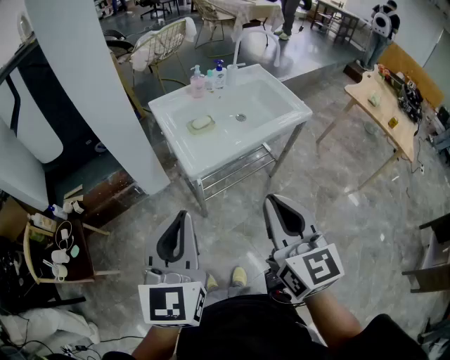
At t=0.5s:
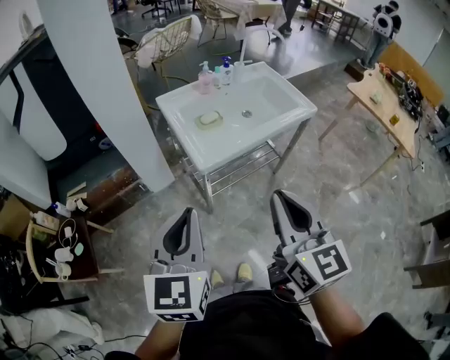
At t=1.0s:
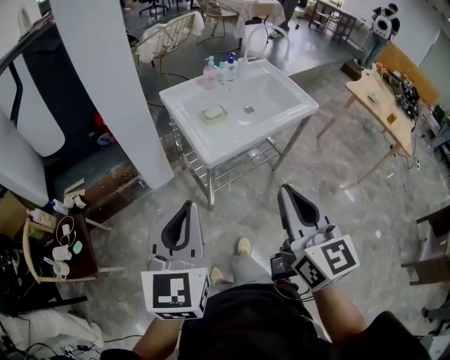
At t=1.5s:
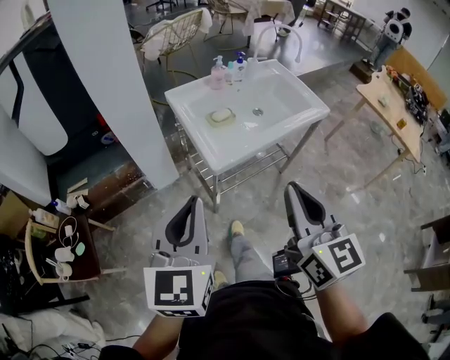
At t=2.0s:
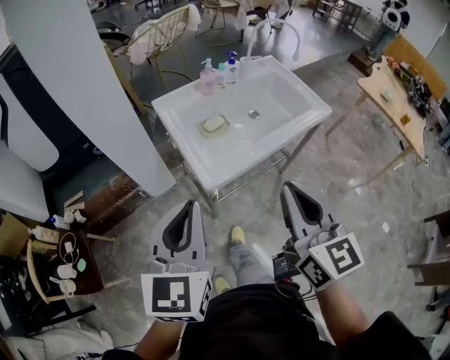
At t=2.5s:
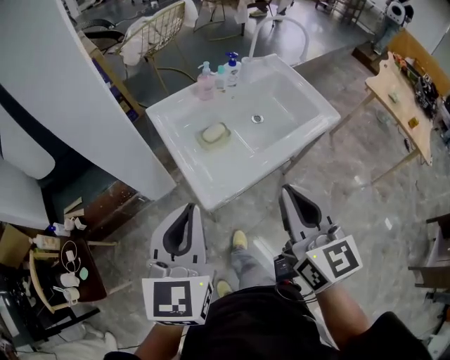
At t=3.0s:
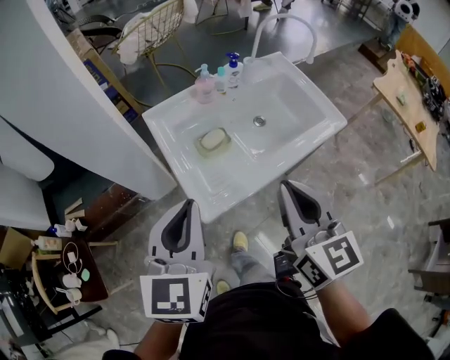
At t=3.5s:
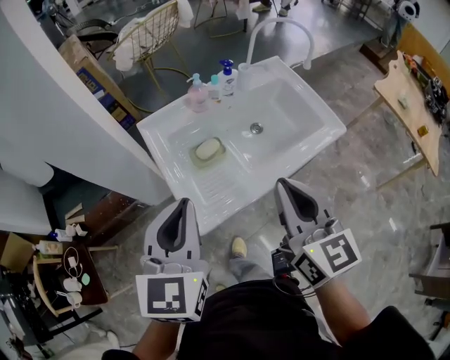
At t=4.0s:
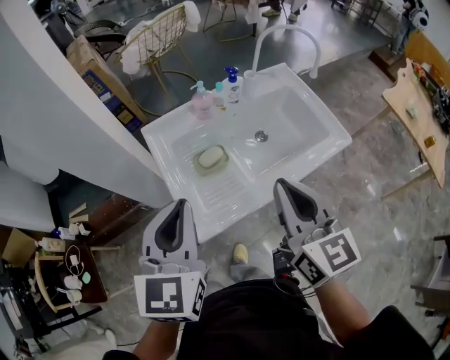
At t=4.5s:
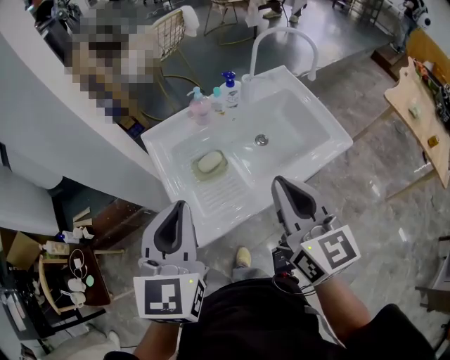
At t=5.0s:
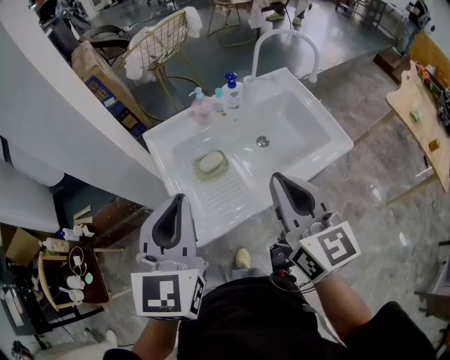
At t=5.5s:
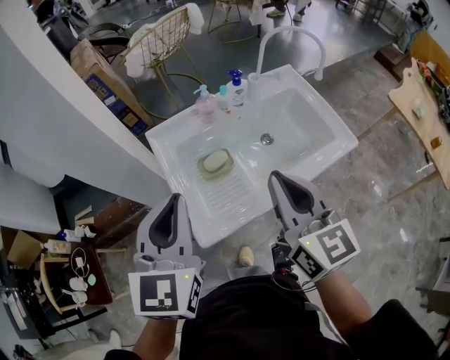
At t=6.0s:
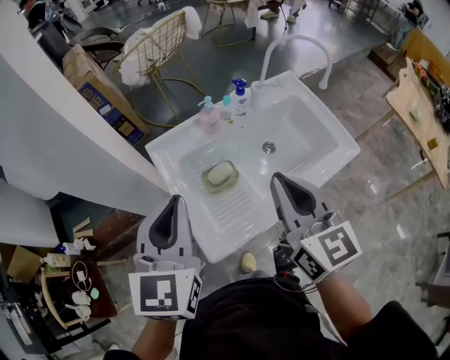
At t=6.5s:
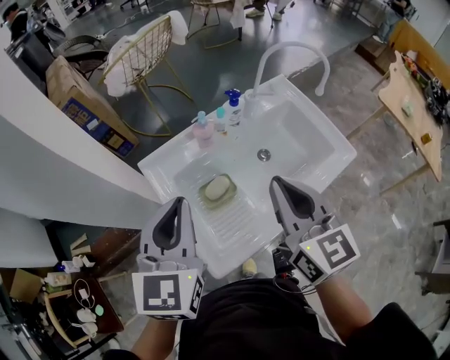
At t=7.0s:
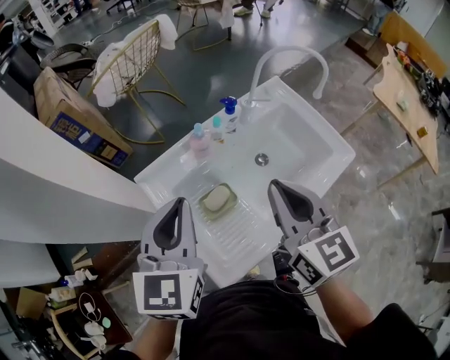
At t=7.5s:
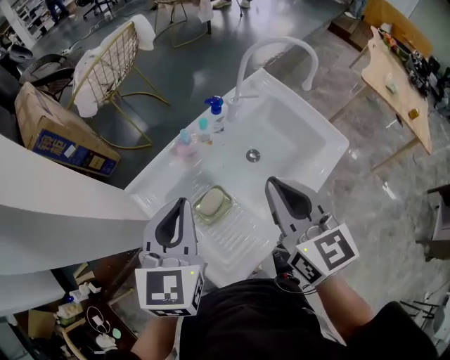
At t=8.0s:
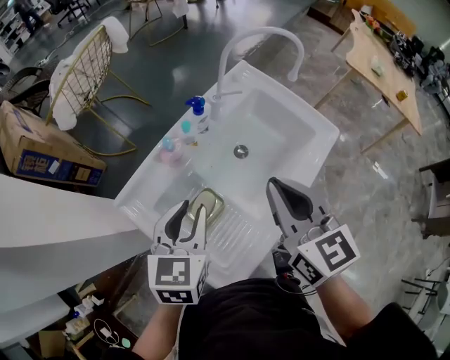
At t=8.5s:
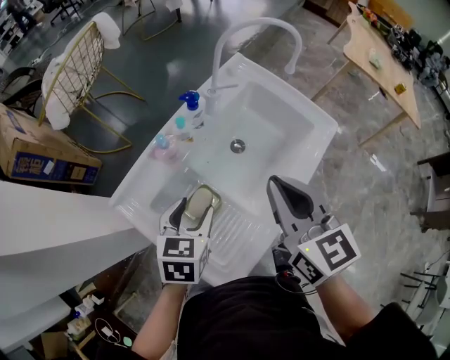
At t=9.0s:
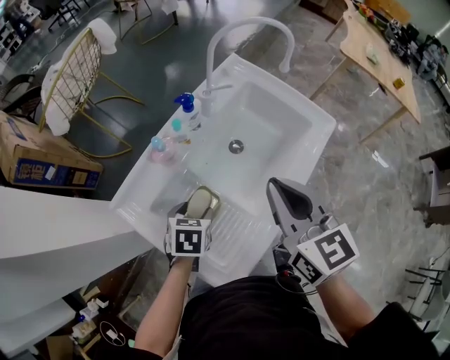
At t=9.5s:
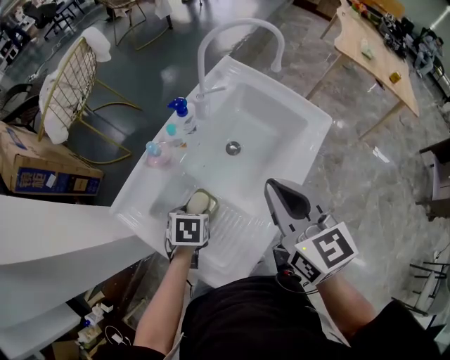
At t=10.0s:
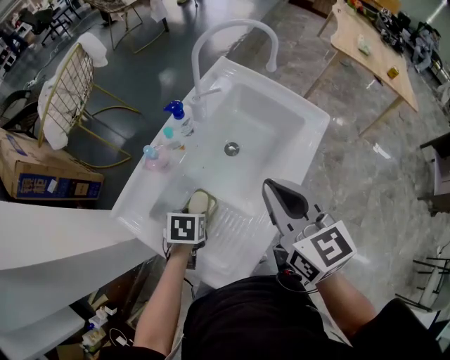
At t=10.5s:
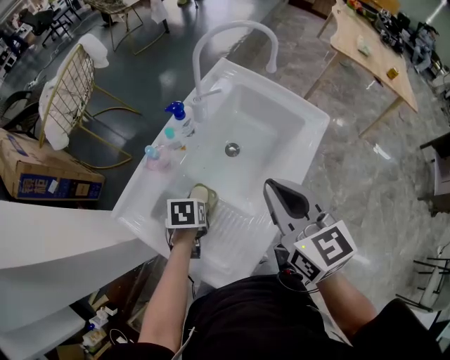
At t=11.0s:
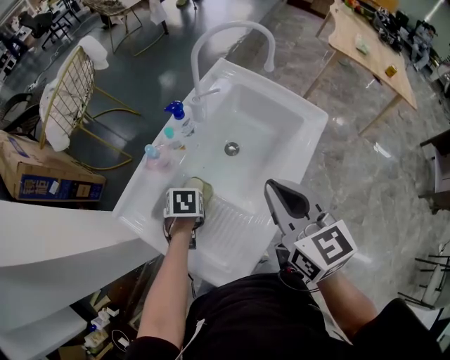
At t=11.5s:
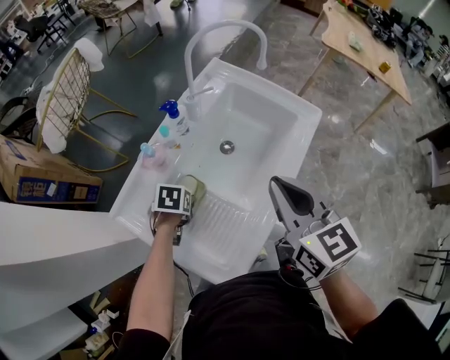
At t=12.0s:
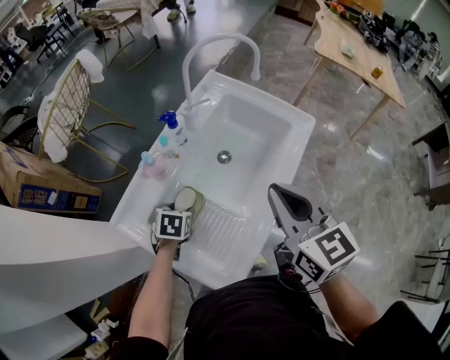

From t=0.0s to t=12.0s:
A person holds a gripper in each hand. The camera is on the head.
From t=0.0s to t=2.0s: Both grippers travel together forward, roughly 10 cm.
From t=2.0s to t=4.0s: Both grippers travel together forward, approximately 20 cm.
From t=4.0s to t=6.0s: The grippers both shift forward by approximately 5 cm.
From t=6.0s to t=8.0s: The left gripper moves forward, downward and to the right, approximately 20 cm, swivels about 30 degrees, and opens. The right gripper is displaced forward by approximately 10 cm.
From t=8.0s to t=10.0s: The left gripper goes approximately 20 cm downward, tilts its fingers approximately 40 degrees downward, and opens its fingers.
From t=10.0s to t=12.0s: The grippers make only small movements.

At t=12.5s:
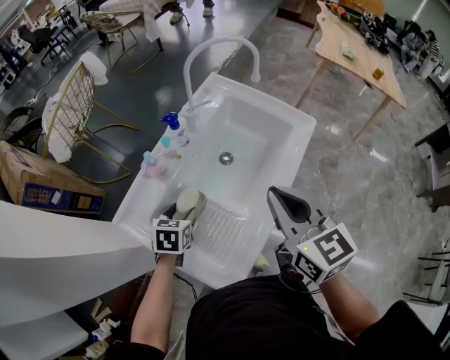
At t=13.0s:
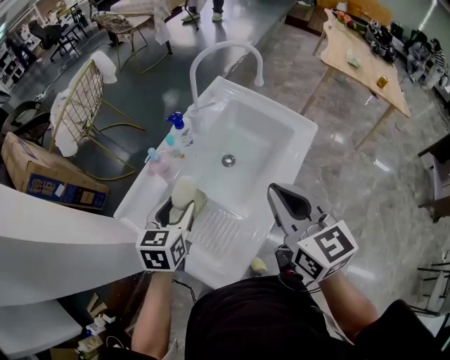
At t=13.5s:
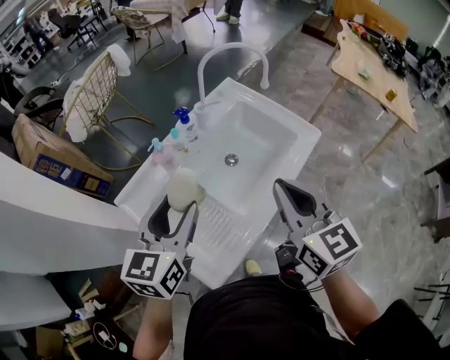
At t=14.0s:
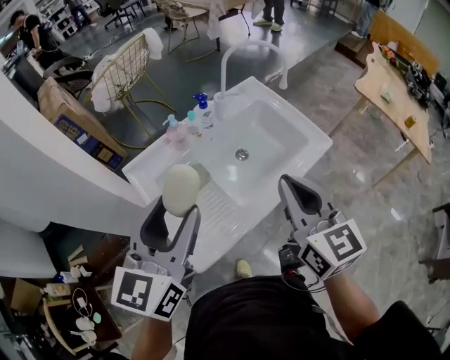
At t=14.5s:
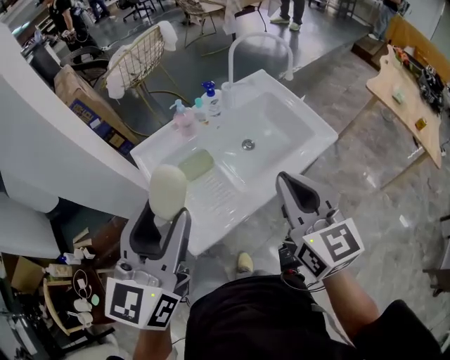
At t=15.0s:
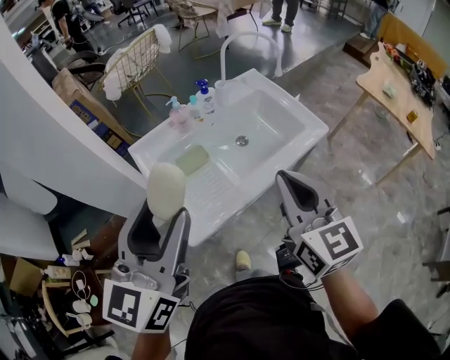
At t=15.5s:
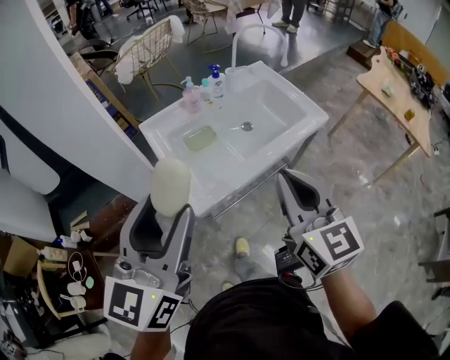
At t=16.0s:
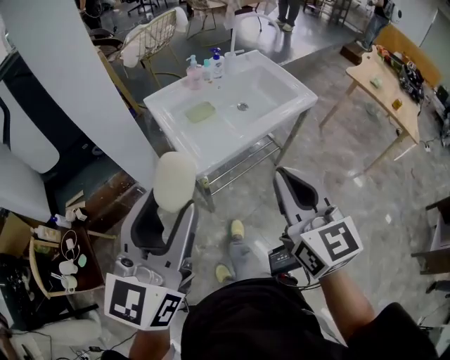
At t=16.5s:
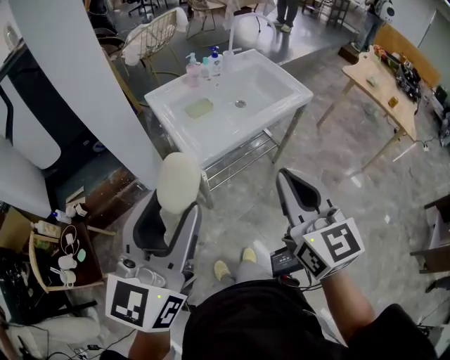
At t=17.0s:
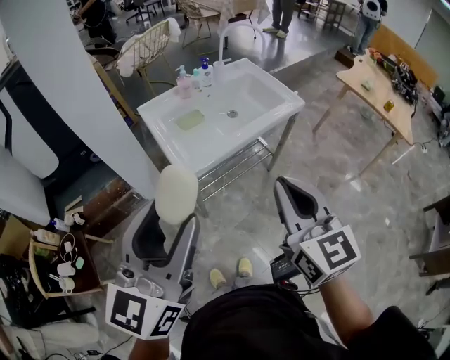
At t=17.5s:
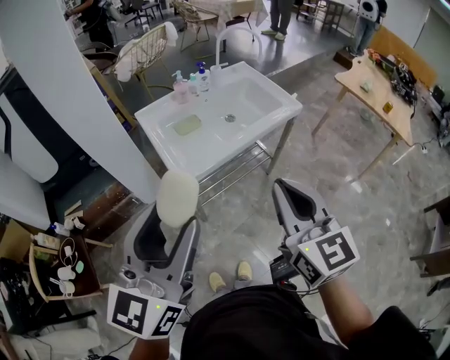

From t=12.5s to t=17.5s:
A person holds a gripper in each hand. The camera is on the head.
From t=12.5s to t=15.0s: The right gripper shifts approximately 10 cm backward and to the right, and turns by approximately 20 degrees. The left gripper travels upward and backward by some 40 cm, and points its fingers roughly 50 degrees further upward.
From t=15.0s to t=17.5s: The grippers both shift backward by some 25 cm.

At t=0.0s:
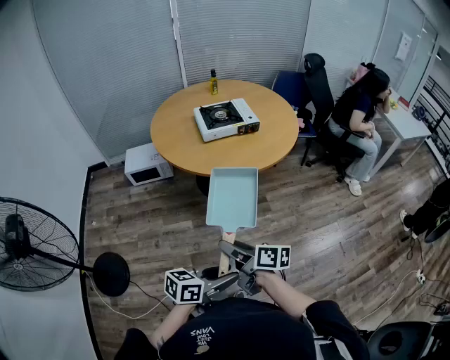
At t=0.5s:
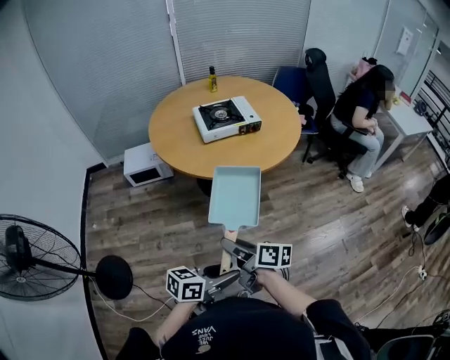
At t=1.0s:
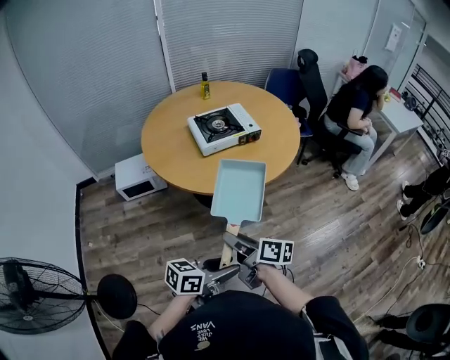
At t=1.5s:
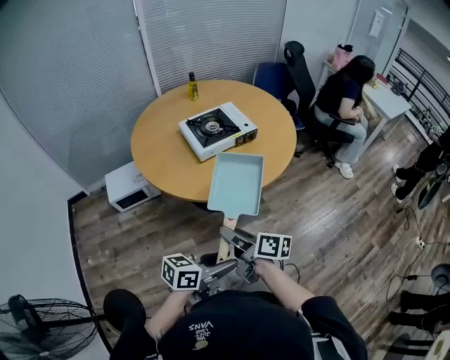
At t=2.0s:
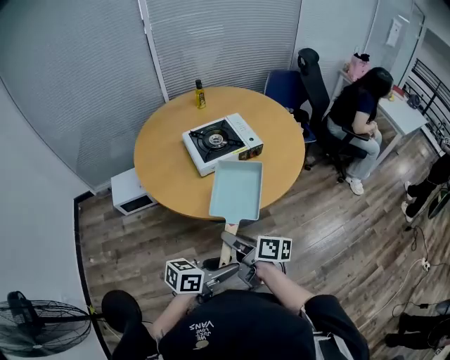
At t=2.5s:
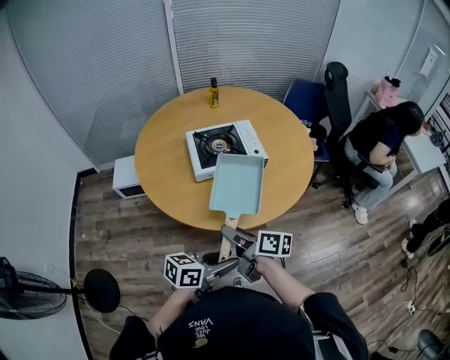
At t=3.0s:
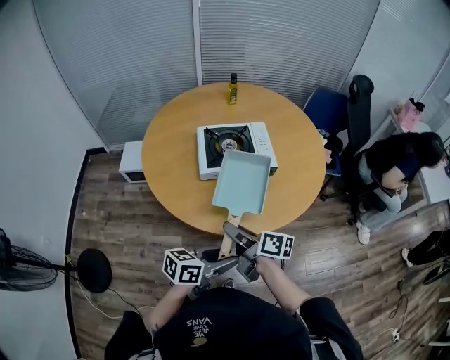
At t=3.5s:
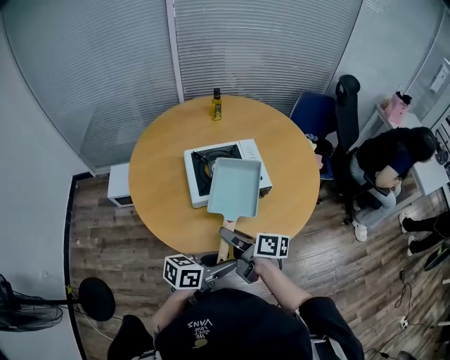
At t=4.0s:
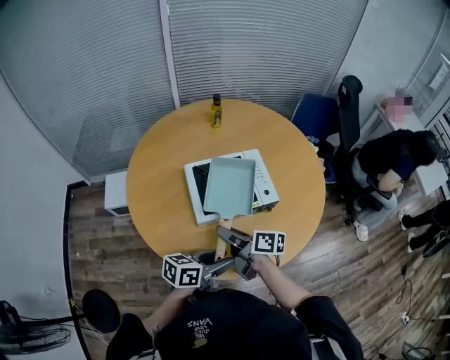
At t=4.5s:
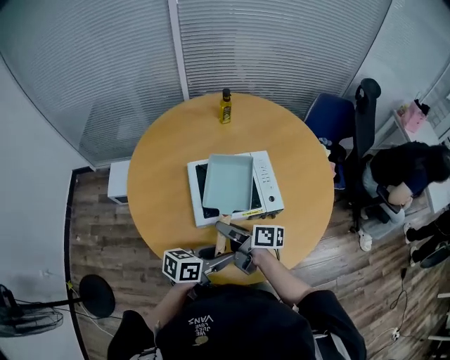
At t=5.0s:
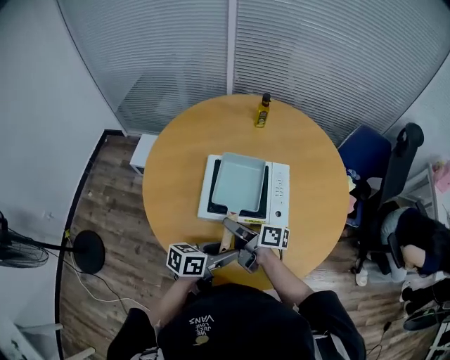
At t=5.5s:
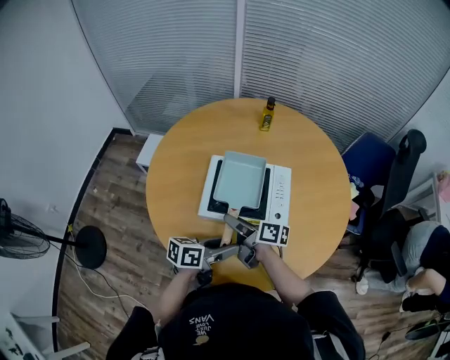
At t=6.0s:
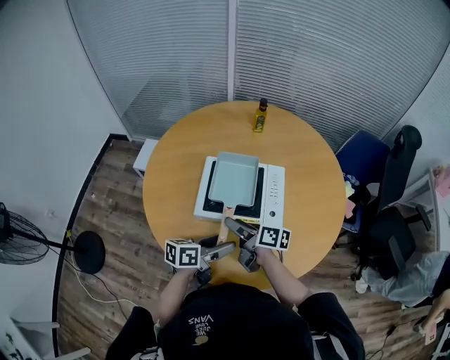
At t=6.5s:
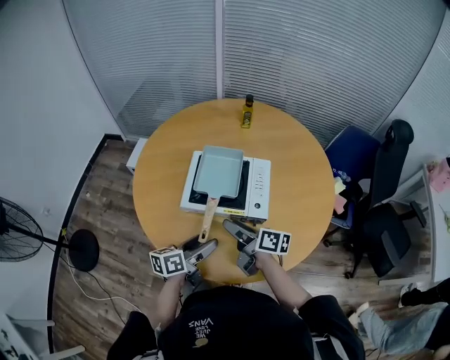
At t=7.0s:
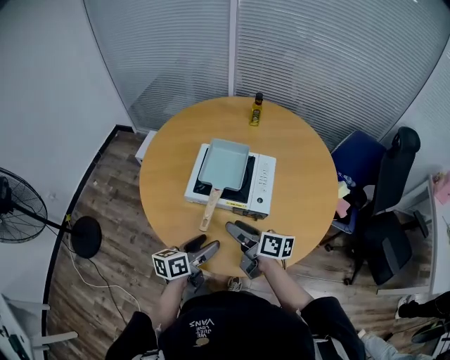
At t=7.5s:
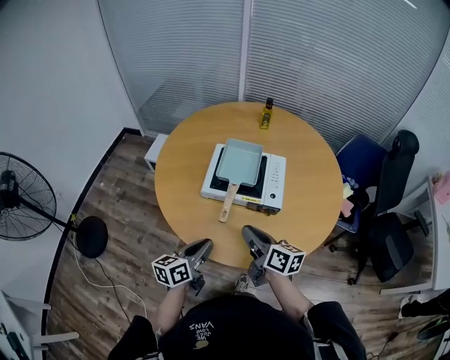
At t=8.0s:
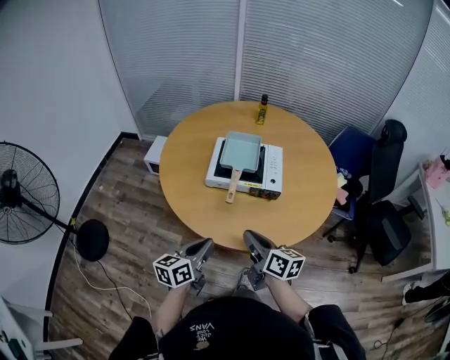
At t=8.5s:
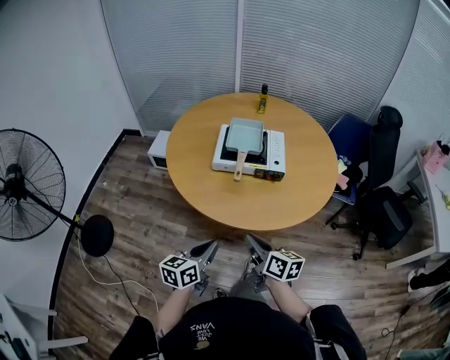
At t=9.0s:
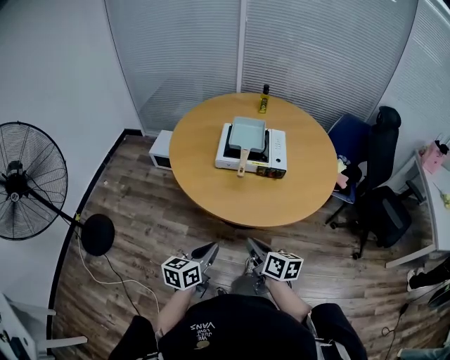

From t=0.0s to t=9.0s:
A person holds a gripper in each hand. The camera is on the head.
From t=0.0s to t=2.0s: The left gripper goes approximately 25 cm forward and to the left. Meanwhile the right gripper shifts some 25 cm forward.
From t=2.0s to t=4.5s: The grippers both shift forward by some 30 cm.
From t=4.5s to t=7.0s: The left gripper changes place by approximately 5 cm, rotates roughly 40 degrees, and opens its fingers. The right gripper moves approximately 15 cm, and rotates approximately 20 degrees.
From t=7.0s to t=9.0s: The right gripper goes approximately 25 cm backward, rotates approximately 20 degrees, and closes up. The left gripper travels backward and to the left by about 25 cm, and closes its fingers.

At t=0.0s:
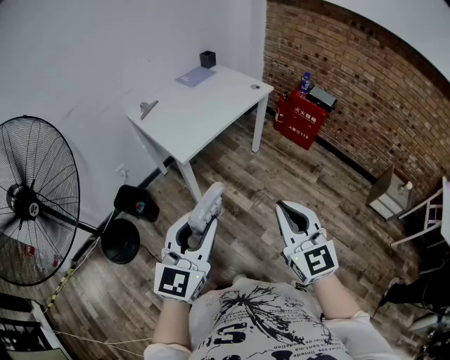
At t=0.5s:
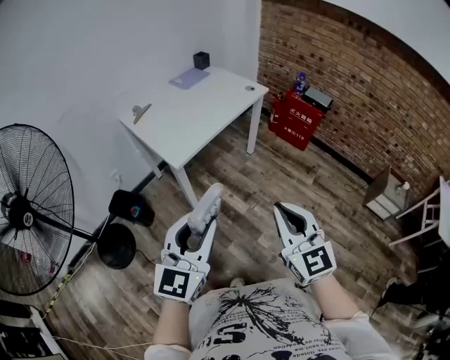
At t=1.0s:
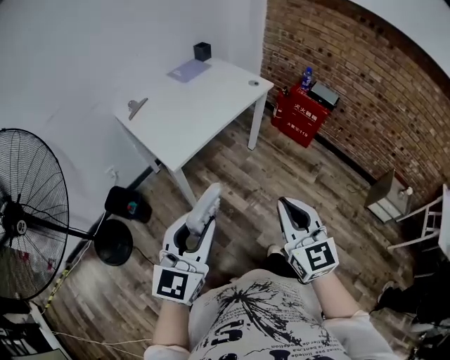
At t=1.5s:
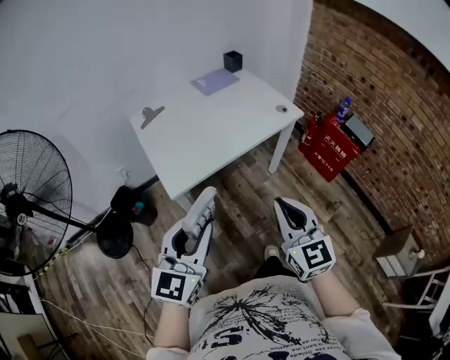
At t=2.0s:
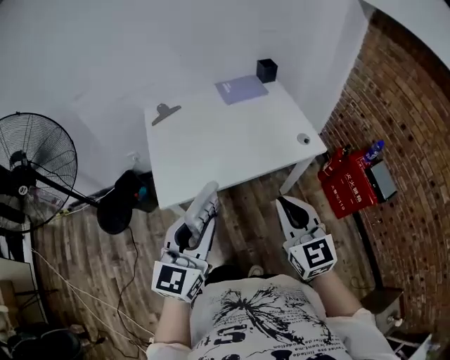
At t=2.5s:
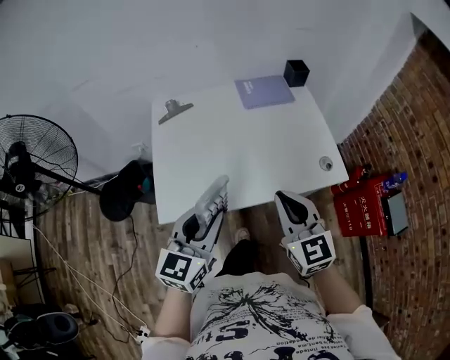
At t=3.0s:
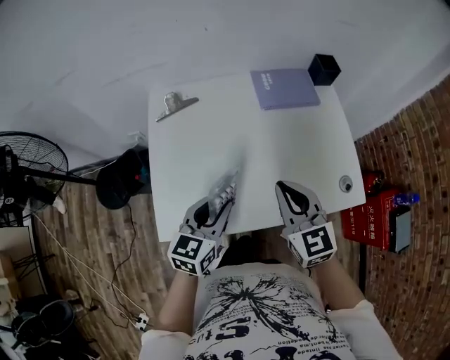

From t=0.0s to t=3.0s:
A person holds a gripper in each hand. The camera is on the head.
From t=0.0s to t=1.5s: The grippers both shift forward by roughly 30 cm.
From t=1.5s to t=3.0s: The two grippers travel together, forward, some 50 cm. The left gripper rotates approximately 30 degrees. Meanwhile the right gripper turns by some 30 degrees.
